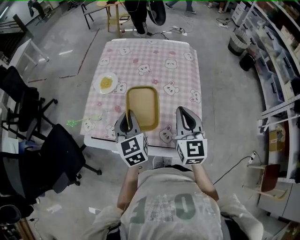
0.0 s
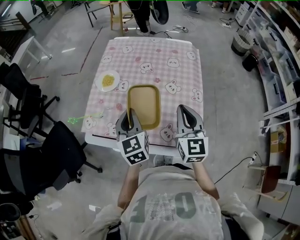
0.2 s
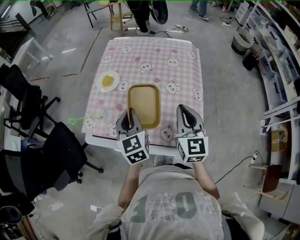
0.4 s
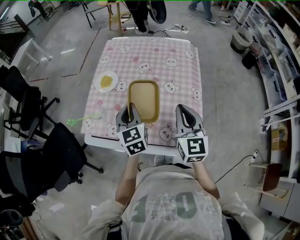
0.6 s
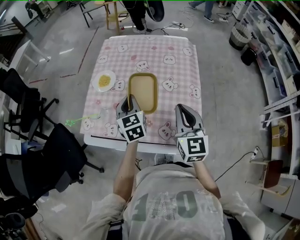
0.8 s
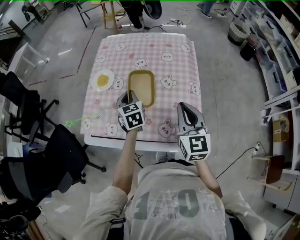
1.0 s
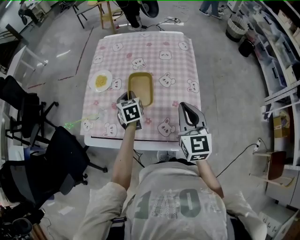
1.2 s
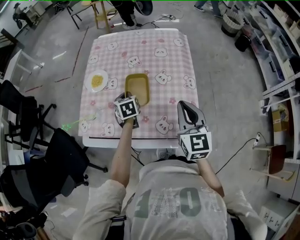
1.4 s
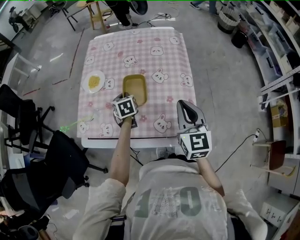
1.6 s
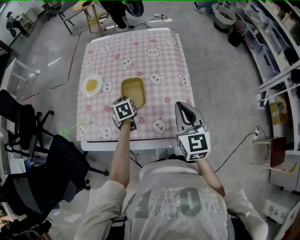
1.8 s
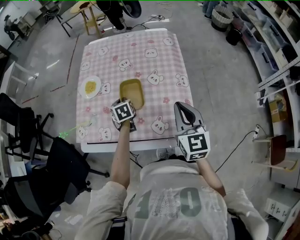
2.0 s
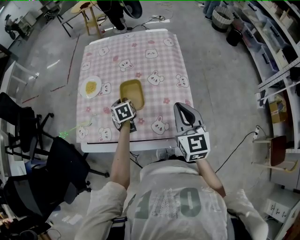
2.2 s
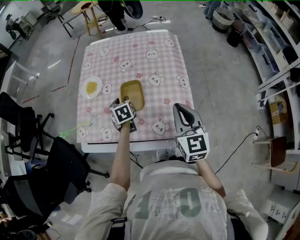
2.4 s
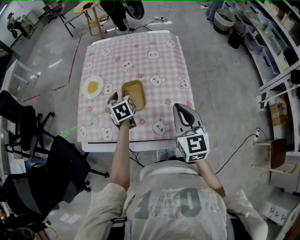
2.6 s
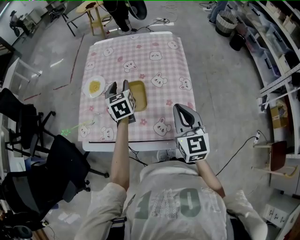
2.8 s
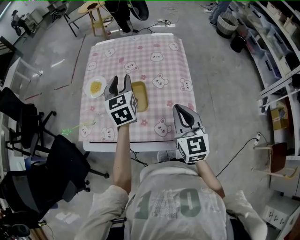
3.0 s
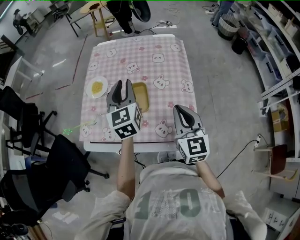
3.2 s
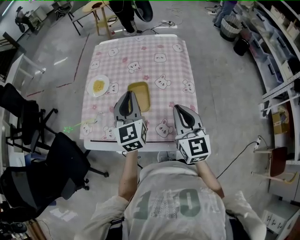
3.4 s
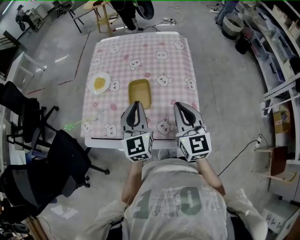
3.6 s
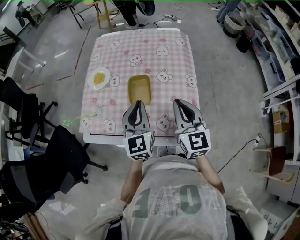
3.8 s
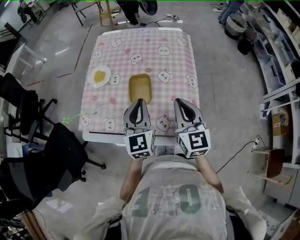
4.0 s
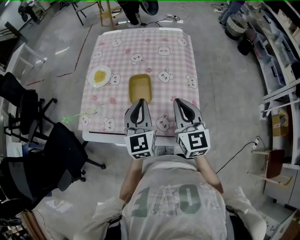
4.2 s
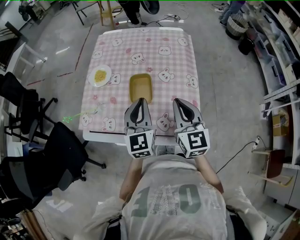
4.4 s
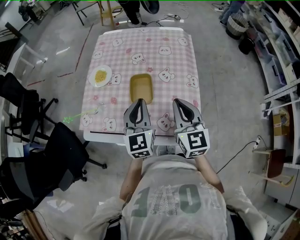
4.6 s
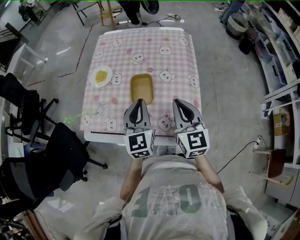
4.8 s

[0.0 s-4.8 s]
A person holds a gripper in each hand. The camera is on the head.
0.0 to 1.6 s: The right gripper changes place by roughly 5 cm; the left gripper heads downward and forward, covering approximately 20 cm, and rotates approximately 30 degrees.
1.6 to 3.2 s: The left gripper travels upward by some 20 cm, tilts its fingers about 40 degrees upward, and opens.
3.2 to 4.8 s: The left gripper is displaced backward and downward by roughly 10 cm.

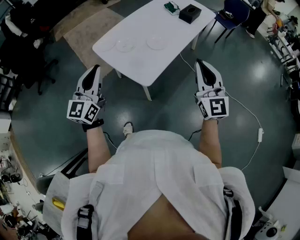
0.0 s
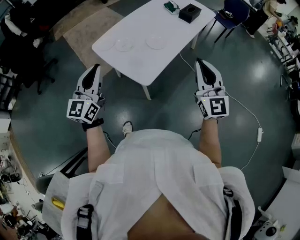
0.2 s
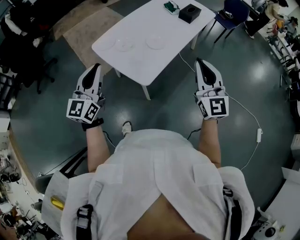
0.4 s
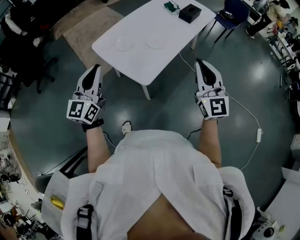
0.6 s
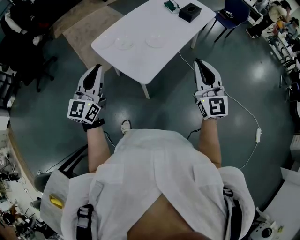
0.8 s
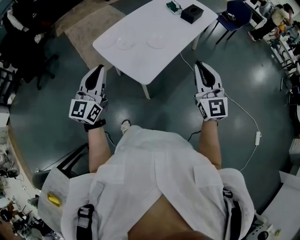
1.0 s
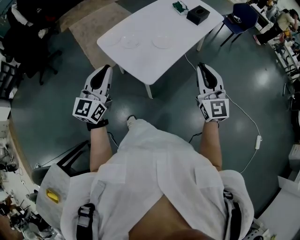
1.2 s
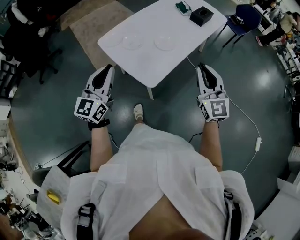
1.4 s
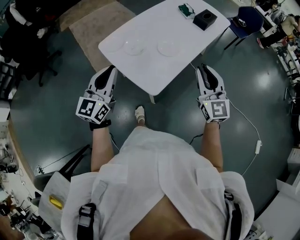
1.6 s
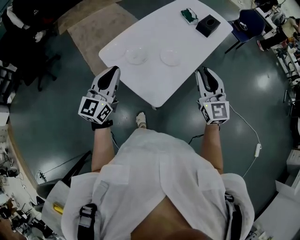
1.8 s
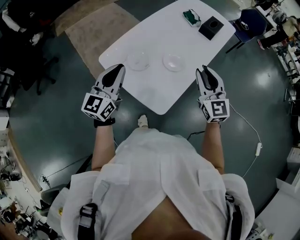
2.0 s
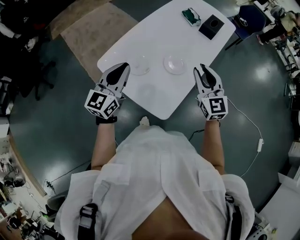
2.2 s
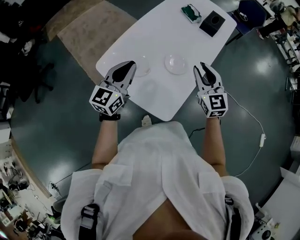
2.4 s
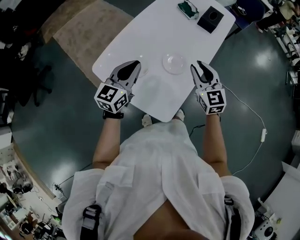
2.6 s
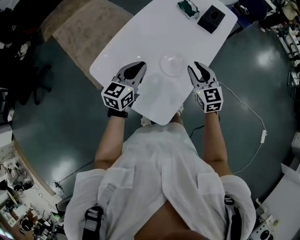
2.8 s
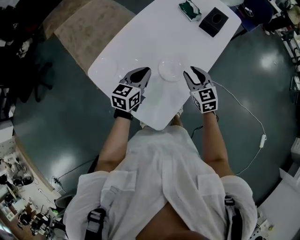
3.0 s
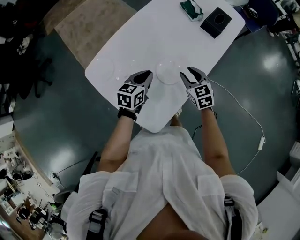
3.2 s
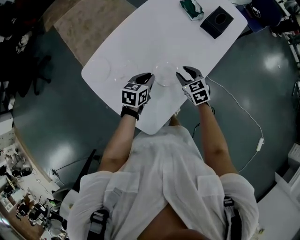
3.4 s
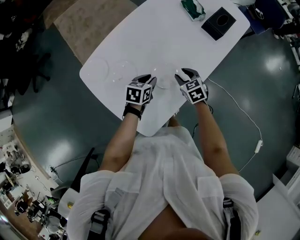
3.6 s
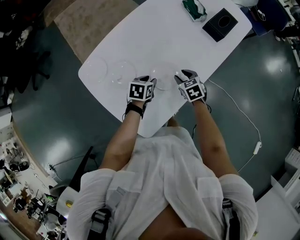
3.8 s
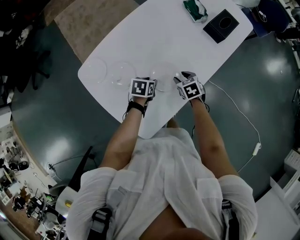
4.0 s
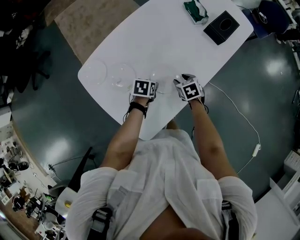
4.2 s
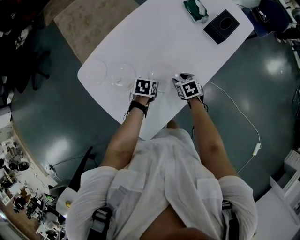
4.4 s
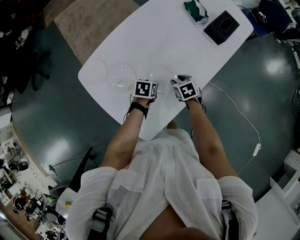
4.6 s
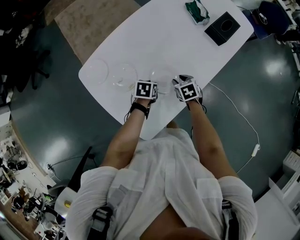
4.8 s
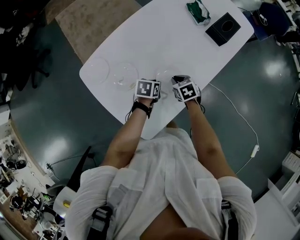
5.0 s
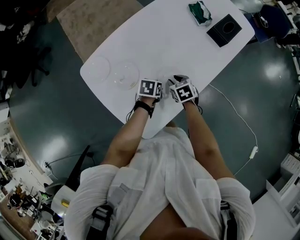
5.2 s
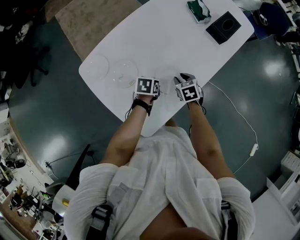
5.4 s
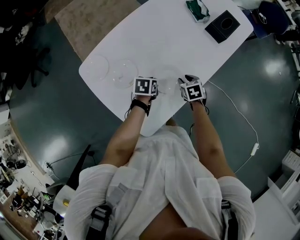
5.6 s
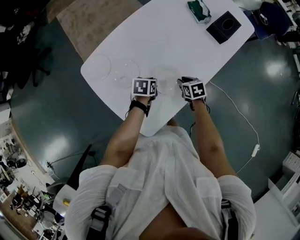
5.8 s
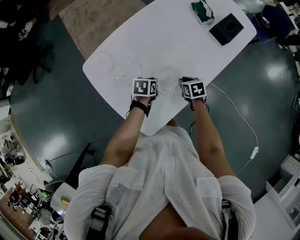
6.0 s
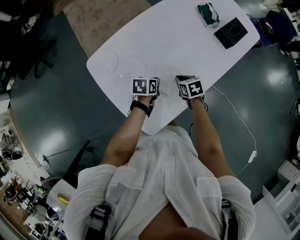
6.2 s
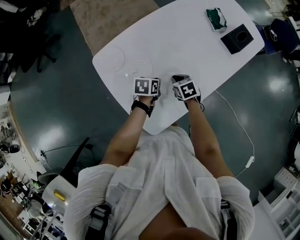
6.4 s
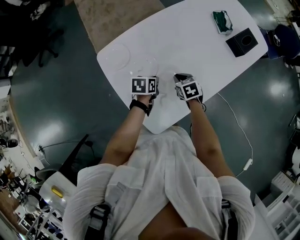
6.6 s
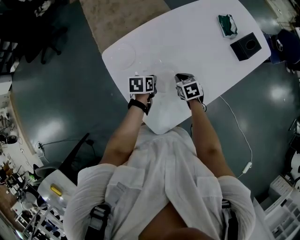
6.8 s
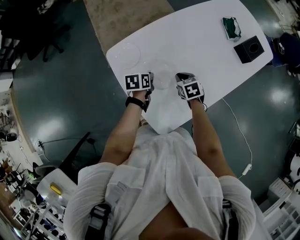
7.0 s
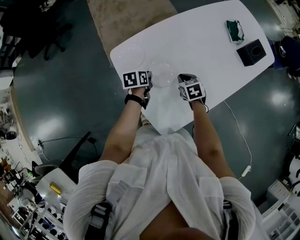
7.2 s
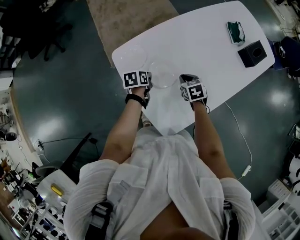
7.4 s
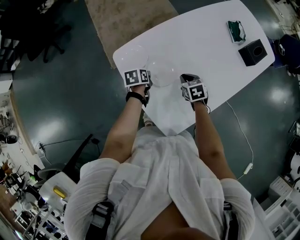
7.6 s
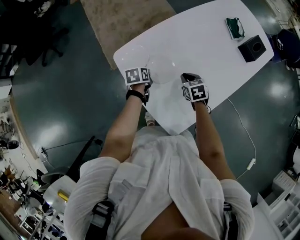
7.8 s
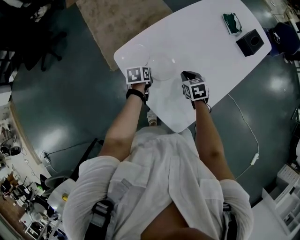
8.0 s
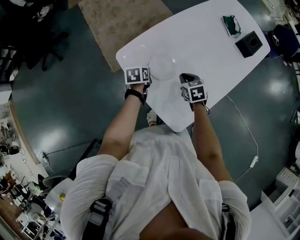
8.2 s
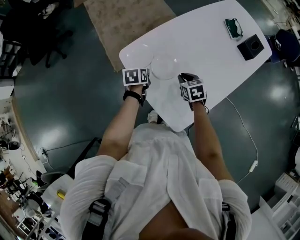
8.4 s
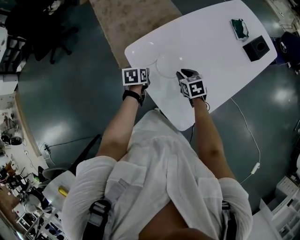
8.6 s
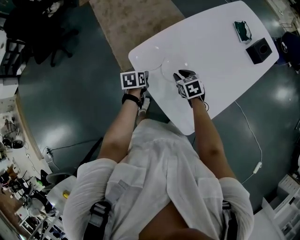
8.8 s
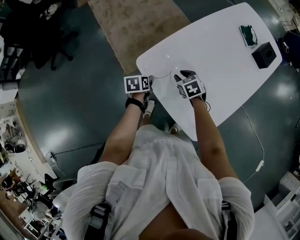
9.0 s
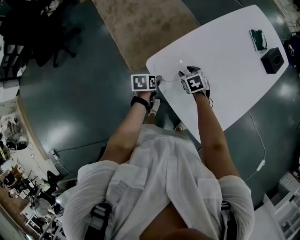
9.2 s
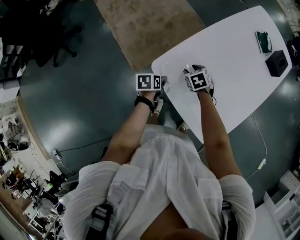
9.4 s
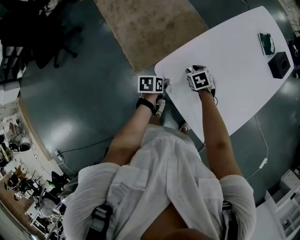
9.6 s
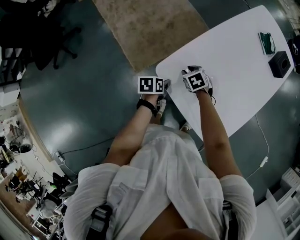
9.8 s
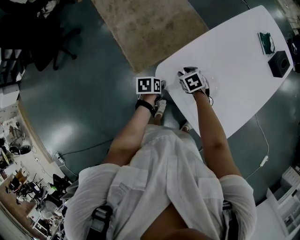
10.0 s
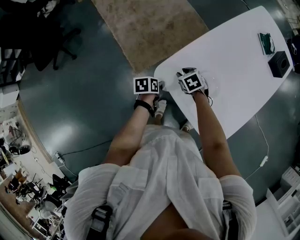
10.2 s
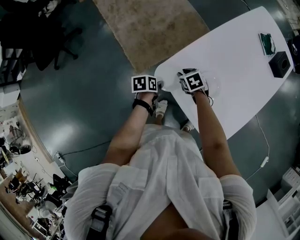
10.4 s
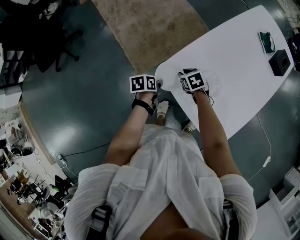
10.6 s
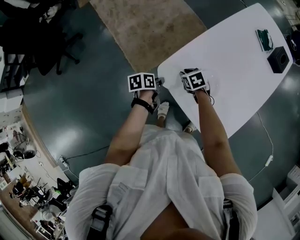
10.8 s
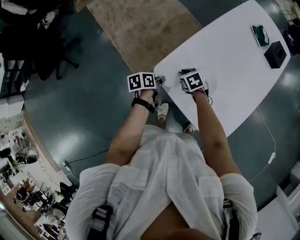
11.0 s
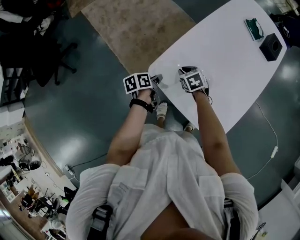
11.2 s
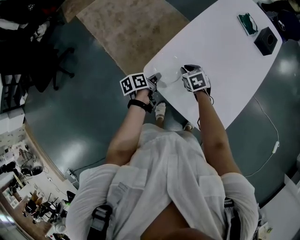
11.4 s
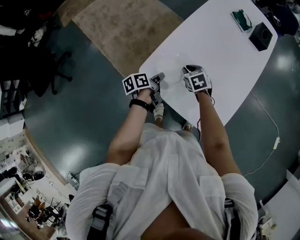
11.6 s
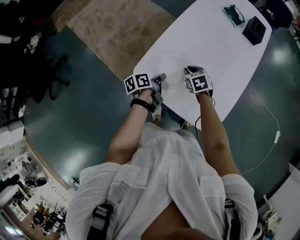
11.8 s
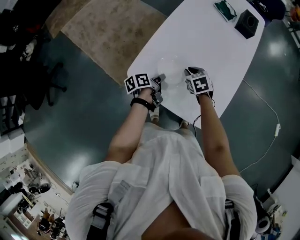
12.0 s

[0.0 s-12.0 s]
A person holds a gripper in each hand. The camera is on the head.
0.0 to 1.6 s: Both grippers travel together forward, some 10 cm.
1.6 to 3.0 s: The grippers both shift forward and downward by approximately 35 cm. The left gripper turns by approximately 30 degrees. The right gripper angles its fingers downward, by some 30 degrees.
3.0 to 4.4 s: Both grippers move downward, some 20 cm. The left gripper tilts its fingers approximately 40 degrees downward, and opens, while the right gripper angles its fingers downward, by approximately 30 degrees.
4.4 to 6.0 s: The left gripper closes its fingers. Meanwhile the right gripper closes its fingers.
6.0 to 7.6 s: The grippers both shift to the left by roughly 20 cm. The left gripper swivels roughly 20 degrees.
7.6 to 9.0 s: Both grippers move to the left, about 15 cm. The left gripper opens, while the right gripper opens.
9.0 to 10.4 s: The left gripper moves to the left, roughly 5 cm. Meanwhile the right gripper heads to the left, forward and downward, covering roughly 15 cm.
10.4 to 12.0 s: Both grippers travel together to the right, about 20 cm. The left gripper changes its angle by roughly 20 degrees. Meanwhile the right gripper changes its angle by approximately 20 degrees.

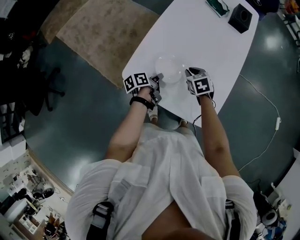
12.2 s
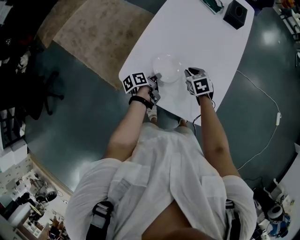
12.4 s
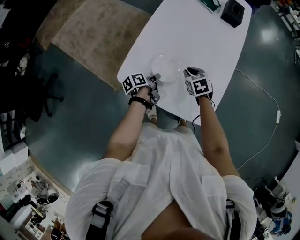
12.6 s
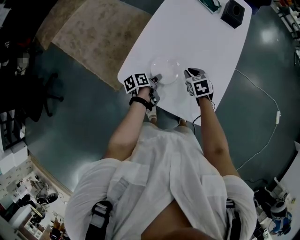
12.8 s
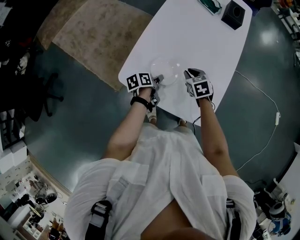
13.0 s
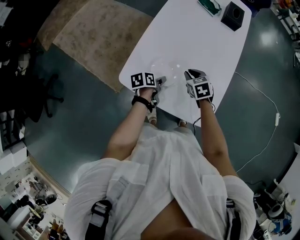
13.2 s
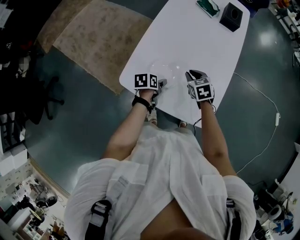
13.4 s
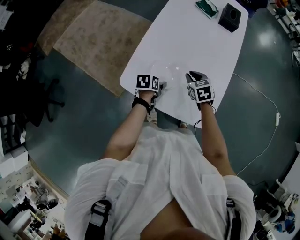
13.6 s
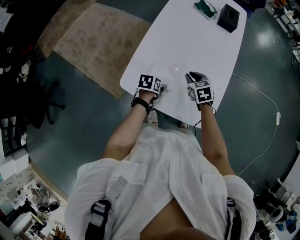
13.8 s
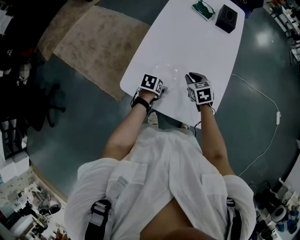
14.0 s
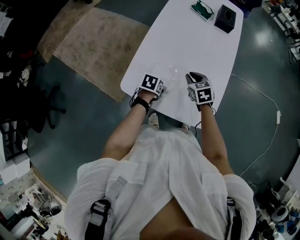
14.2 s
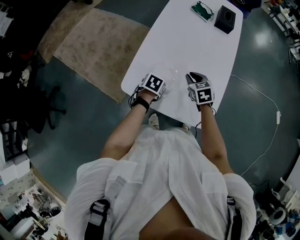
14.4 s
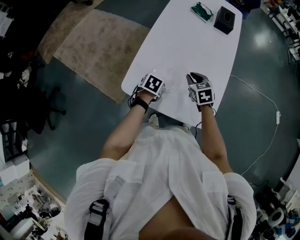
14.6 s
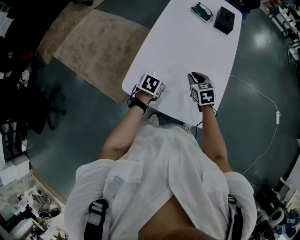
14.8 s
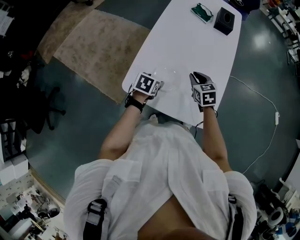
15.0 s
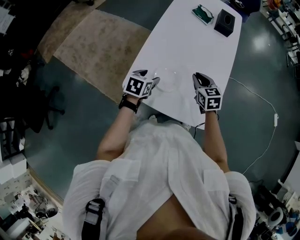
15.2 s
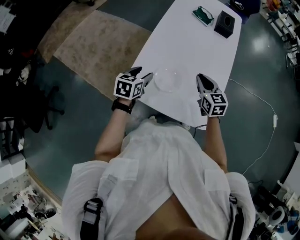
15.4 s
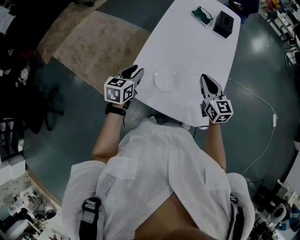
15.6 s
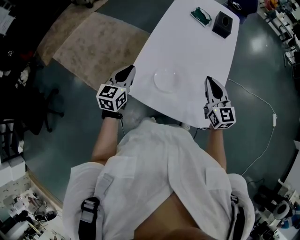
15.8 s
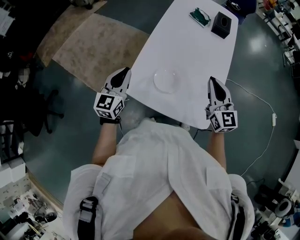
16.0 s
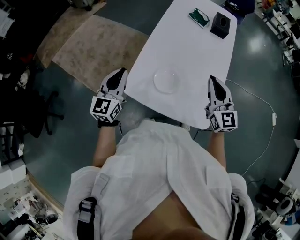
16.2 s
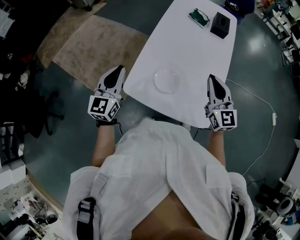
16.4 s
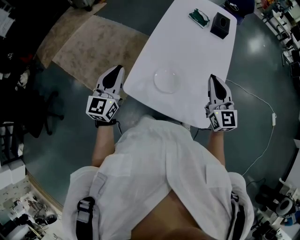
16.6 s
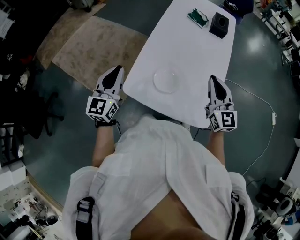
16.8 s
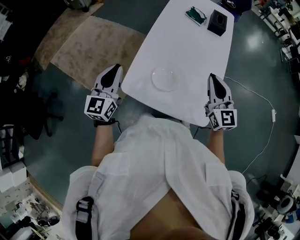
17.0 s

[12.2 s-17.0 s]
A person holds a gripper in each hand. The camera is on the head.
12.2 to 13.8 s: The left gripper rotates around the line of its fingers by about 40 degrees, clockwise from behind, and opens up. The right gripper shifts by approximately 5 cm.
13.8 to 15.4 s: The right gripper shifts about 10 cm upward, and rotates roughly 20 degrees, while the left gripper goes approximately 15 cm upward and to the left, and changes its angle by about 30 degrees.
15.4 to 17.0 s: The right gripper travels upward by roughly 15 cm, and changes its angle by approximately 30 degrees, while the left gripper shifts some 20 cm upward and to the left, tips its fingers upward by about 40 degrees, and closes.

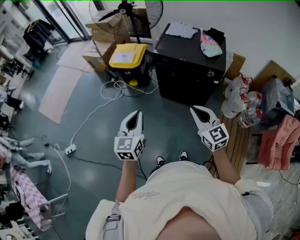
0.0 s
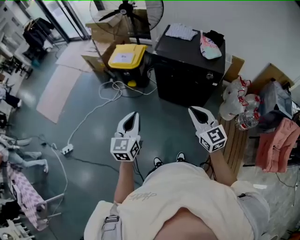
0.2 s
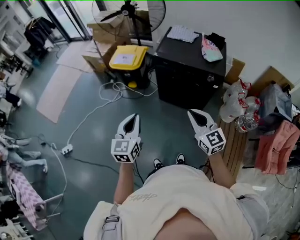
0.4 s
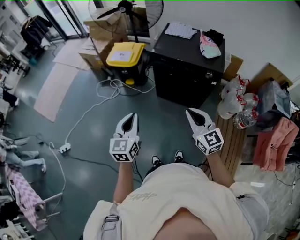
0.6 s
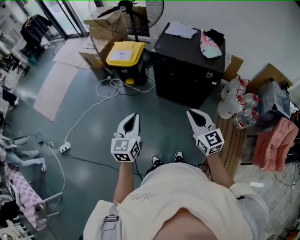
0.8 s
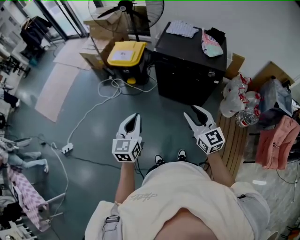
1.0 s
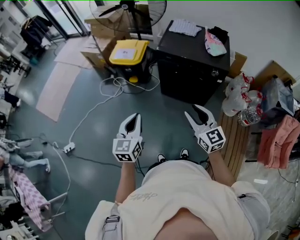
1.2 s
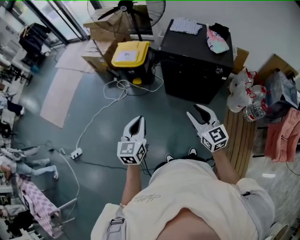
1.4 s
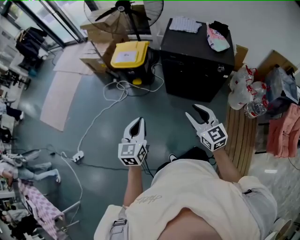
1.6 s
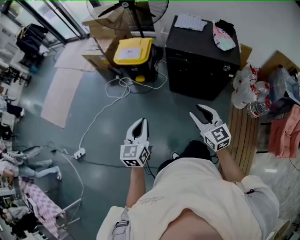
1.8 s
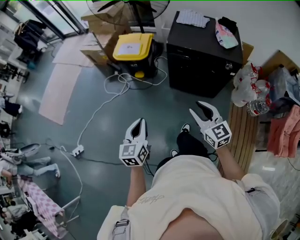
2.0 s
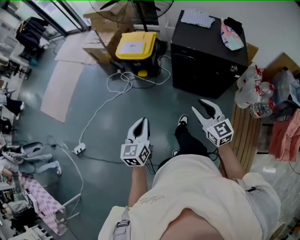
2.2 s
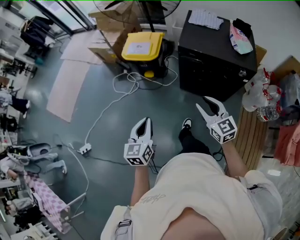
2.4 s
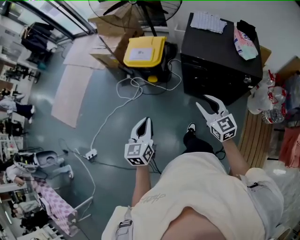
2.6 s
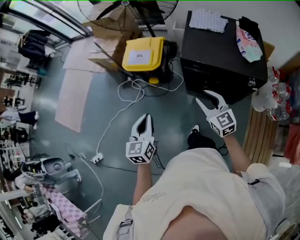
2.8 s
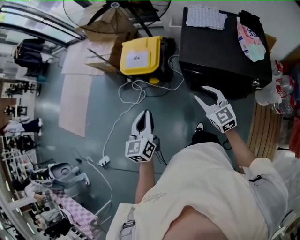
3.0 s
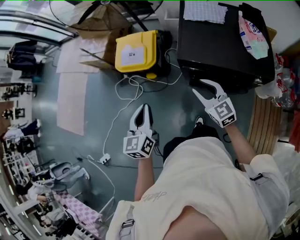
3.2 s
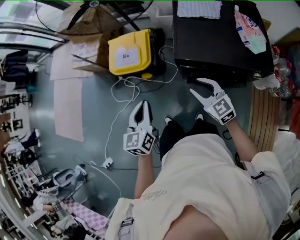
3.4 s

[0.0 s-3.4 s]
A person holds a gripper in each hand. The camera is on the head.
0.0 to 1.6 s: Both grippers travel together to the left, about 10 cm. The right gripper opens its fingers.
1.6 to 3.4 s: Both grippers move forward, roughly 35 cm.
